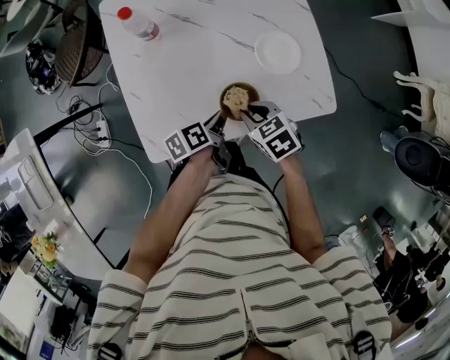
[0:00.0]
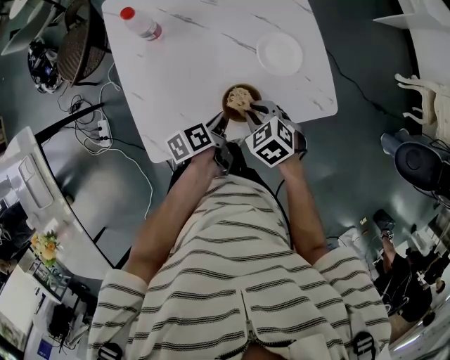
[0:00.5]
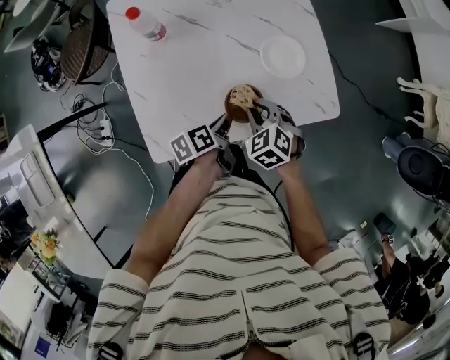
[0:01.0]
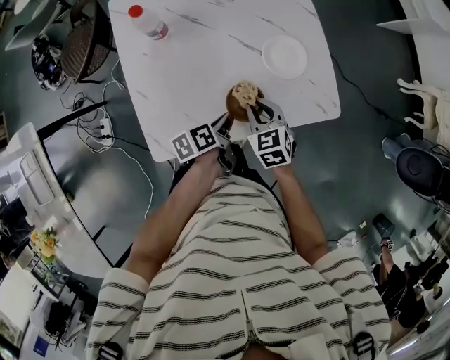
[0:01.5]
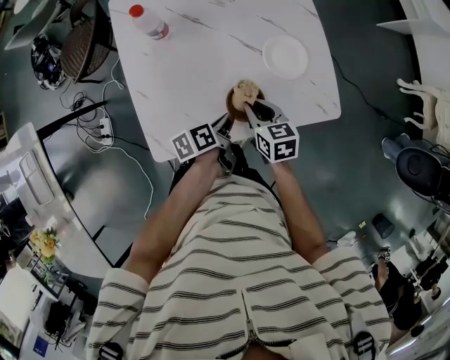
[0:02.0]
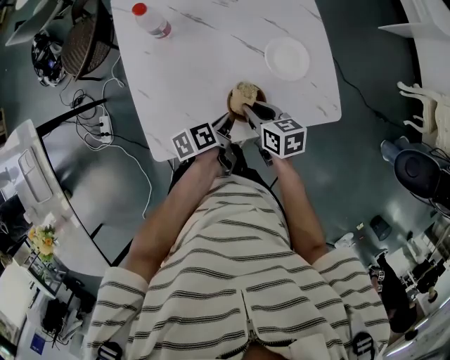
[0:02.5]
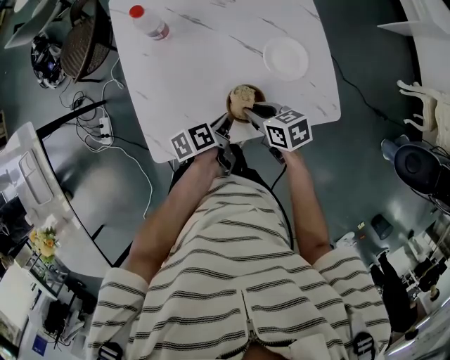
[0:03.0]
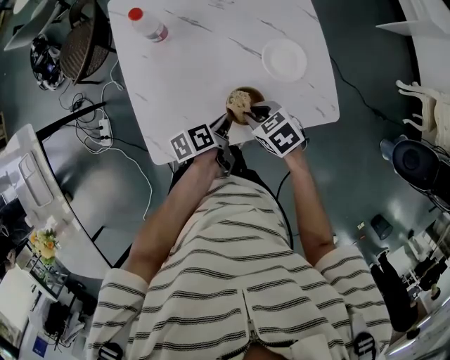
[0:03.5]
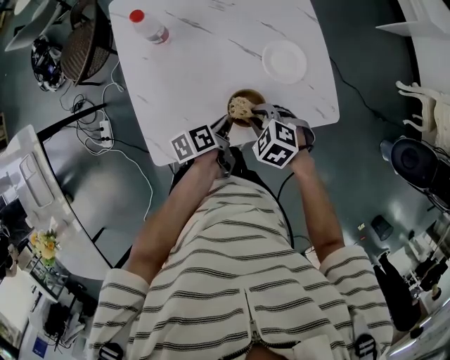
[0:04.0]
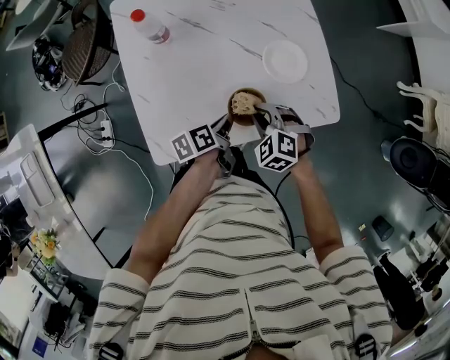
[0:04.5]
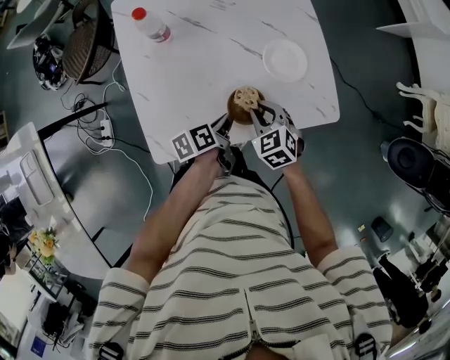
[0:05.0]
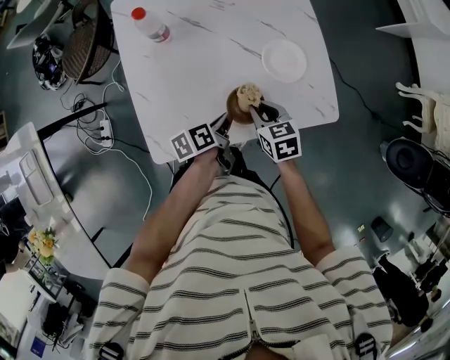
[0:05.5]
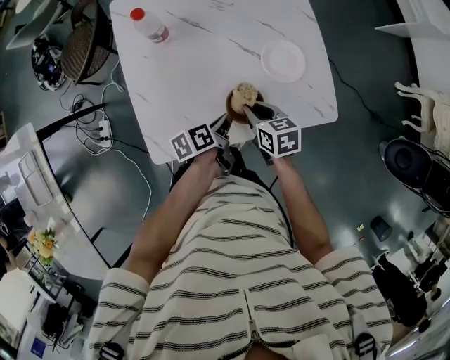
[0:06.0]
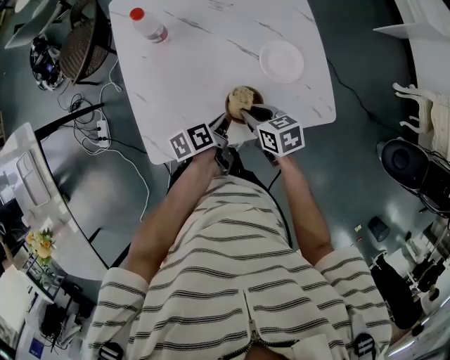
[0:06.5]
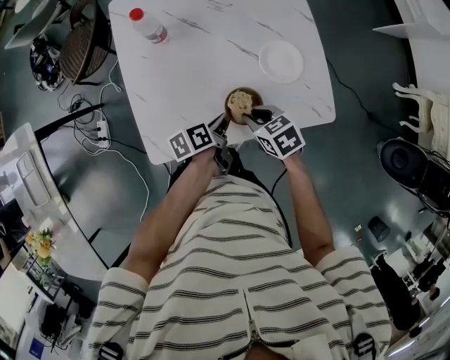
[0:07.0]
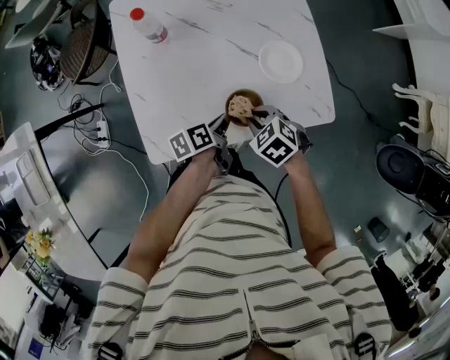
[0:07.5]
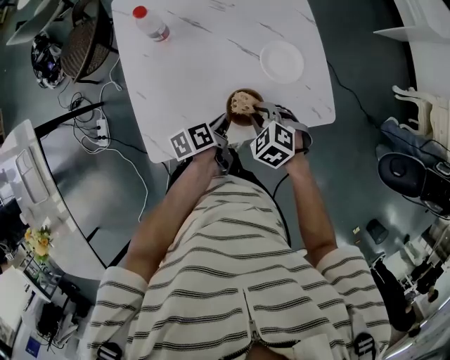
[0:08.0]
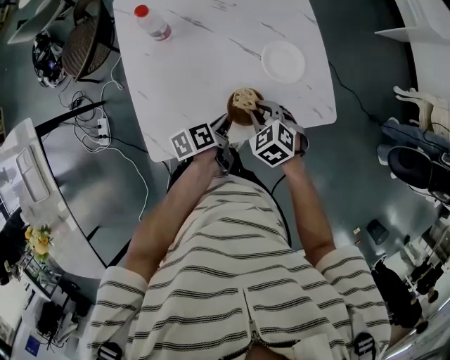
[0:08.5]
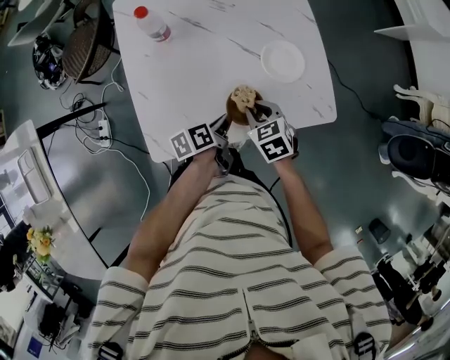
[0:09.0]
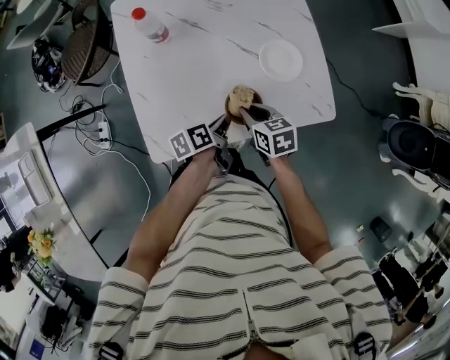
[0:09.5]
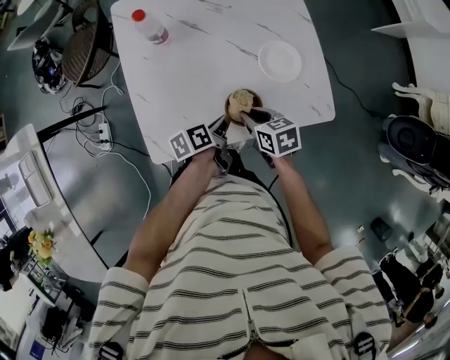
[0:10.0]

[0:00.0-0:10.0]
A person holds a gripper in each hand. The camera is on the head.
0:00.0 to 0:02.0: The right gripper swivels roughly 30 degrees.
0:02.0 to 0:04.0: The right gripper rolls counterclockwise, seen from behind, by roughly 50 degrees.
0:04.0 to 0:06.0: The right gripper rotates around the line of its fingers by some 50 degrees, clockwise from behind.
0:06.0 to 0:08.0: The right gripper rolls counterclockwise, seen from behind, by roughly 50 degrees.
0:08.0 to 0:10.0: The right gripper rolls clockwise, seen from behind, by some 50 degrees.

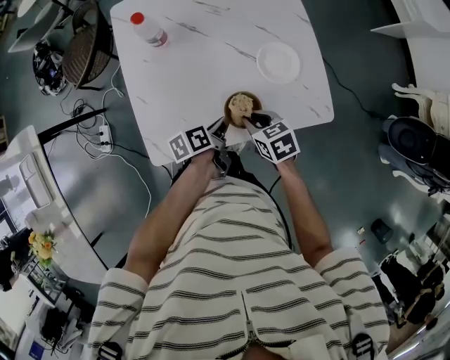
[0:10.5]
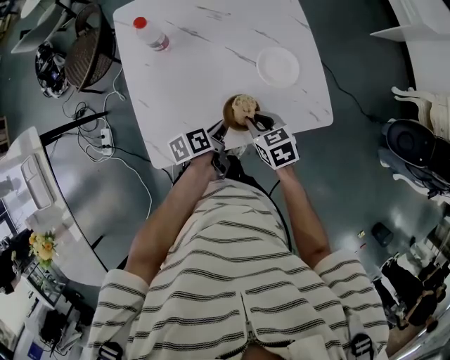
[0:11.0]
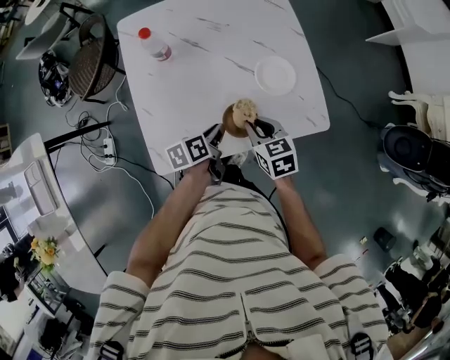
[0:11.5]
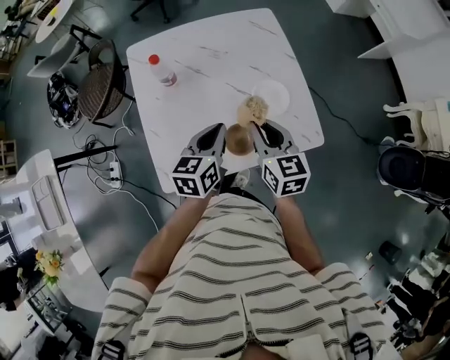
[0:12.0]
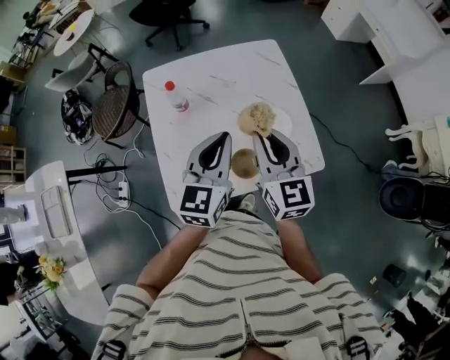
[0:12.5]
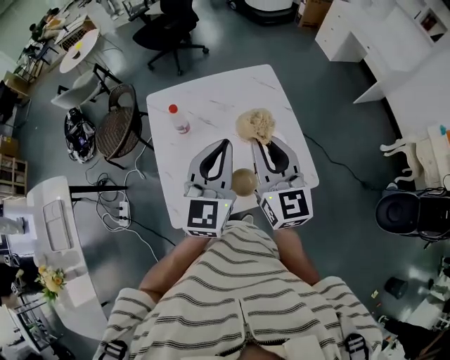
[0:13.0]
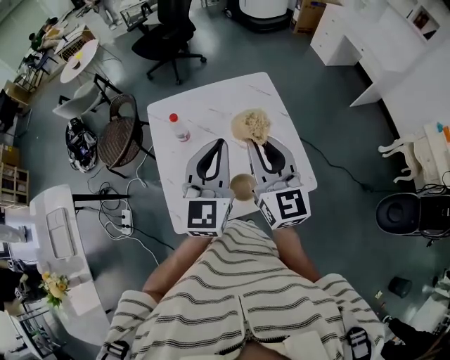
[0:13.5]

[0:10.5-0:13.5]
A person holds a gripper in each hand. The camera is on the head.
0:10.5 to 0:12.0: Both grippers move upward, about 20 cm. The left gripper rotates around the line of its fingers by approximately 50 degrees, clockwise from behind; the right gripper turns by about 40 degrees.
0:12.0 to 0:13.5: The two grippers go approximately 20 cm upward. The right gripper changes its angle by some 30 degrees. The left gripper changes its angle by roughly 40 degrees.

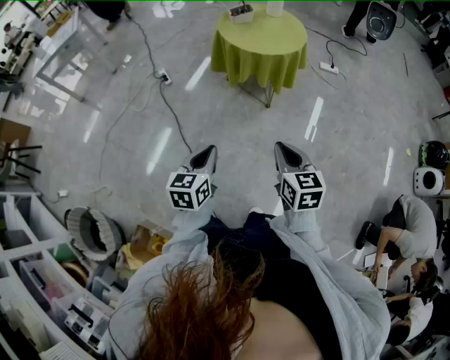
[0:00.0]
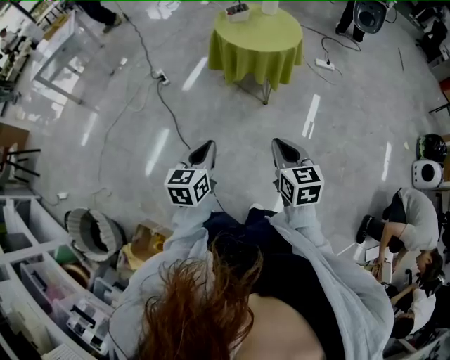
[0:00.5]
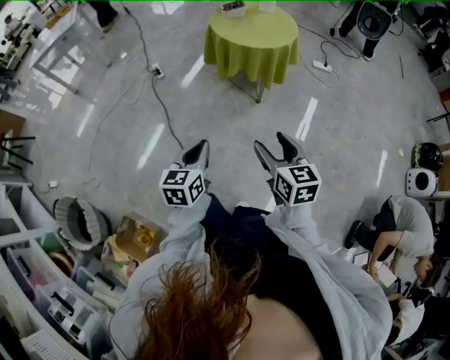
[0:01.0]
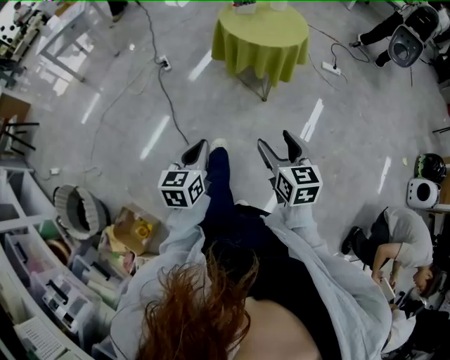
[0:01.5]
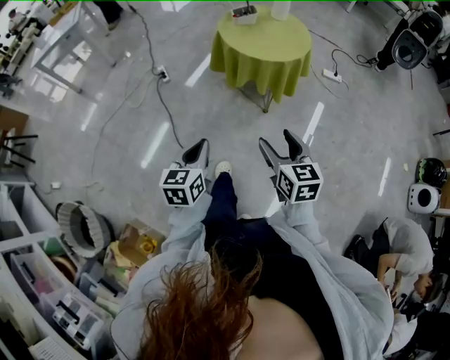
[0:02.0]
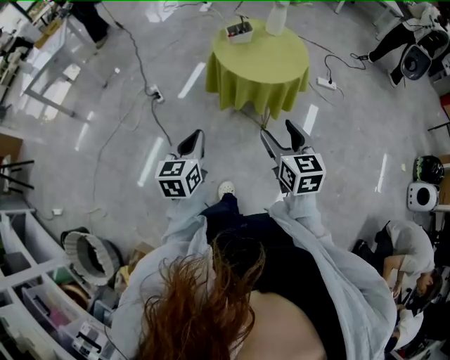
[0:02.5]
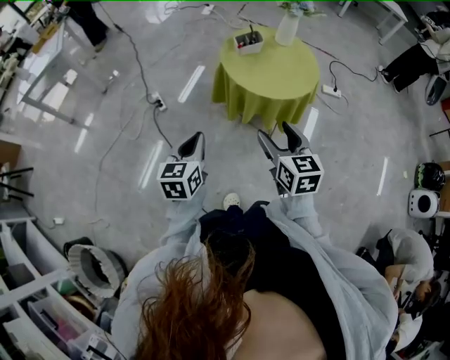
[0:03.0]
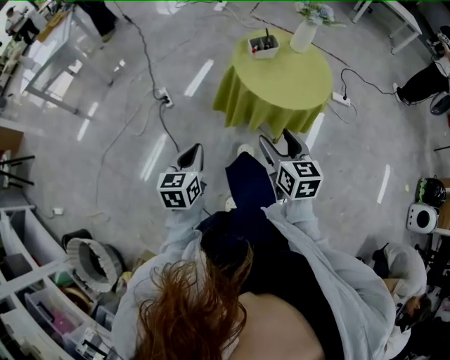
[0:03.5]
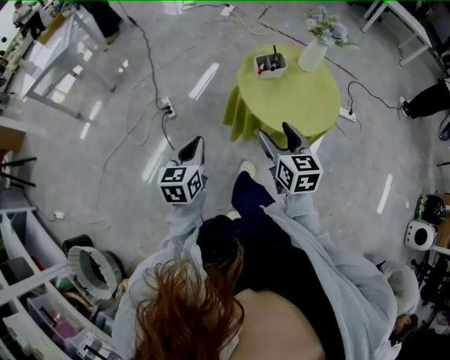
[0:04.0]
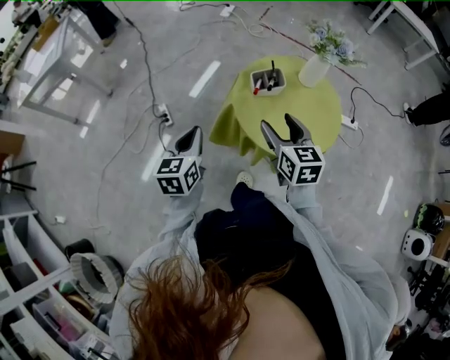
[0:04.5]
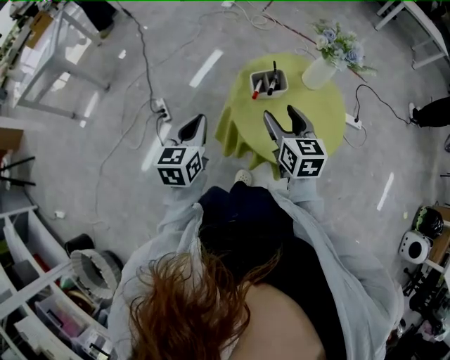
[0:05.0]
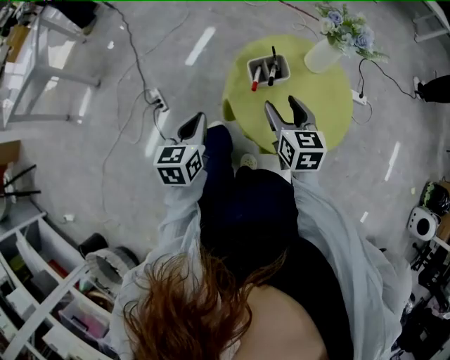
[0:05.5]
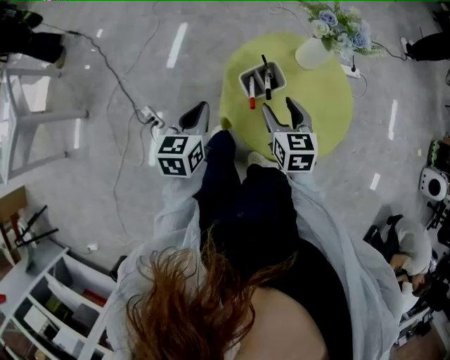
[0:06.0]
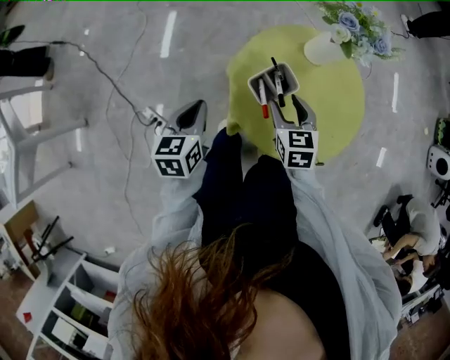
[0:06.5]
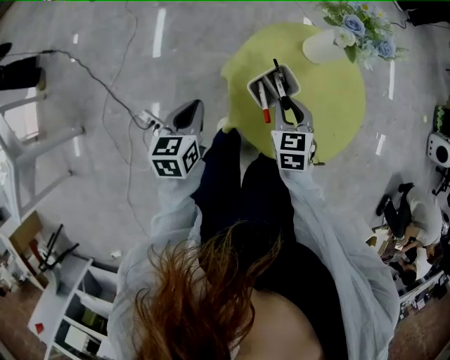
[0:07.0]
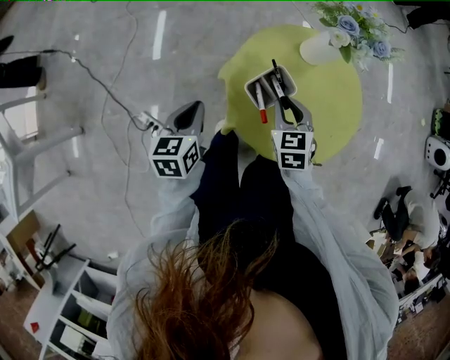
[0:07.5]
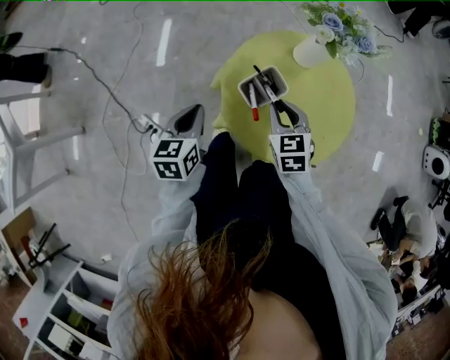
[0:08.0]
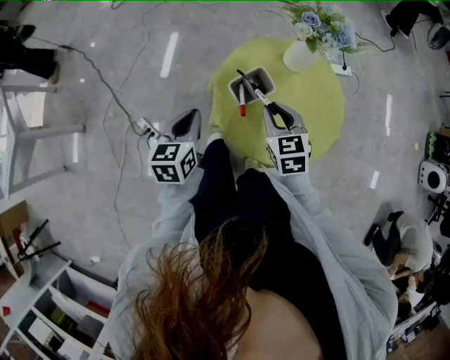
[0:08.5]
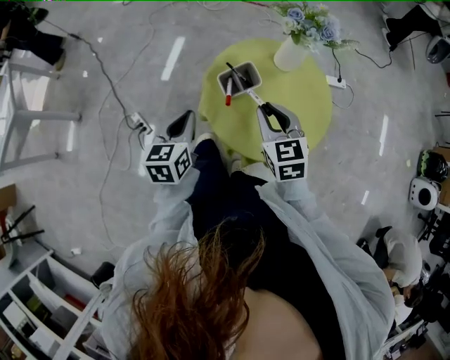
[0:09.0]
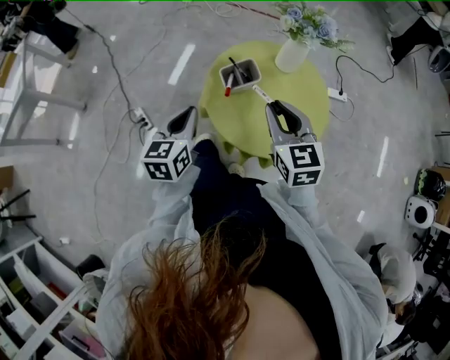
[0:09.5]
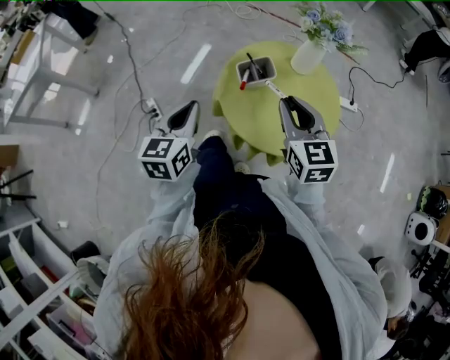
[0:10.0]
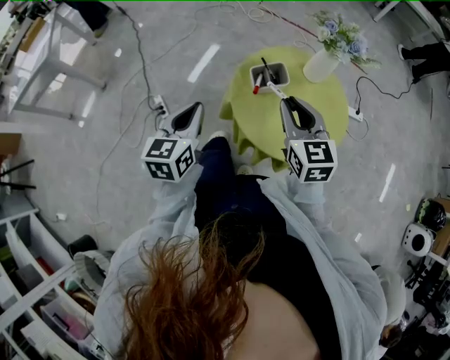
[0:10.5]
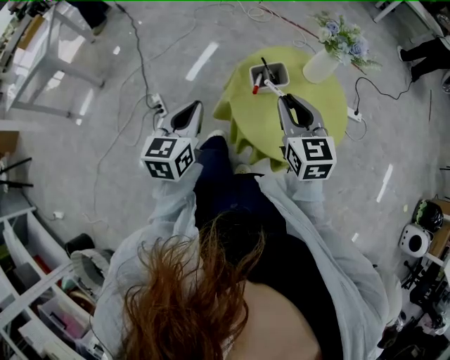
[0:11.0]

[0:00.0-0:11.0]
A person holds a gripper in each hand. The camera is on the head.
0:00.0 to 0:02.0: Both grippers travel together forward, roughly 5 cm. The right gripper opens up.
0:02.0 to 0:03.5: The left gripper heads forward and to the left, covering approximately 25 cm. The right gripper is displaced forward by roughly 25 cm.
0:03.5 to 0:05.5: The two grippers go roughly 30 cm forward.
0:05.5 to 0:07.5: The right gripper shifts about 10 cm downward, swivels approximately 30 degrees, and closes, while the left gripper changes place by about 20 cm, and rotates some 20 degrees.
0:07.5 to 0:09.0: The right gripper travels upward and backward by approximately 10 cm, and changes its angle by about 20 degrees; the left gripper goes some 10 cm backward and to the right.
0:09.0 to 0:11.0: The right gripper moves upward, roughly 5 cm, while the left gripper shifts roughly 10 cm backward and upward.

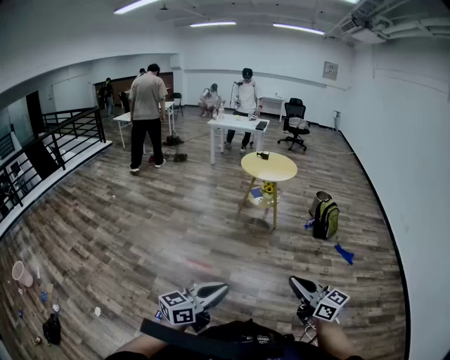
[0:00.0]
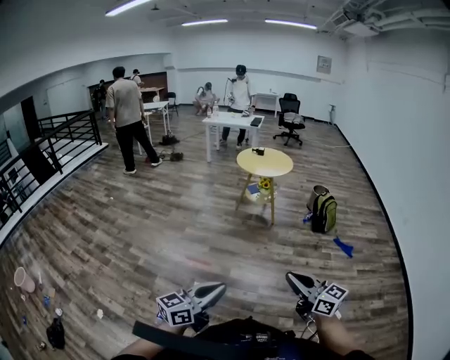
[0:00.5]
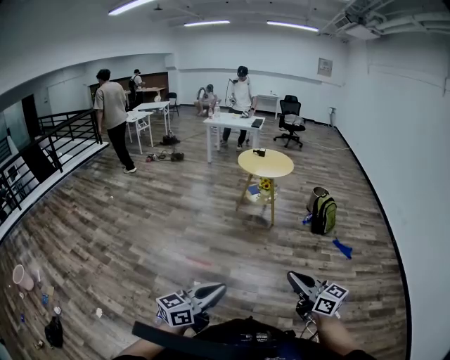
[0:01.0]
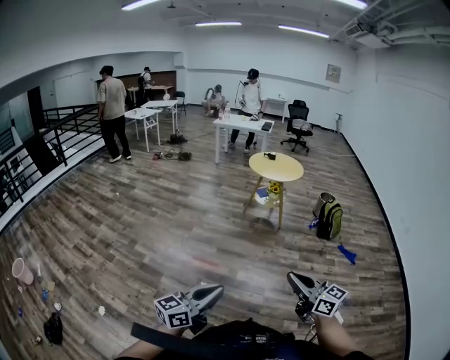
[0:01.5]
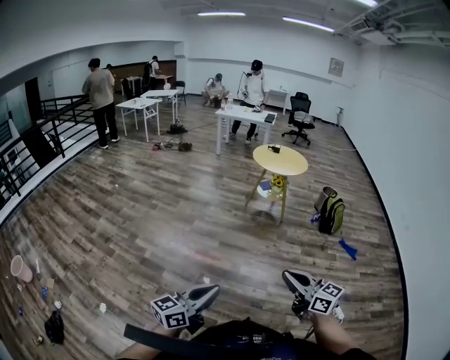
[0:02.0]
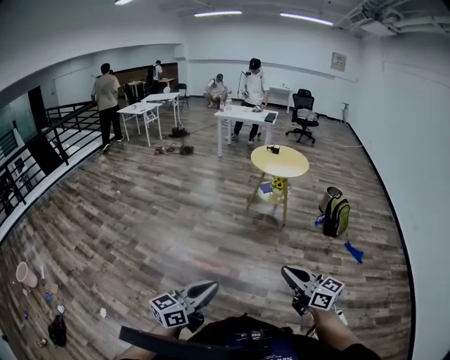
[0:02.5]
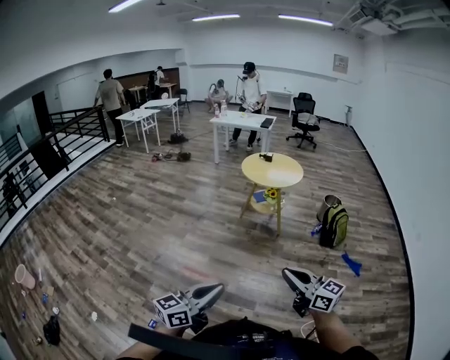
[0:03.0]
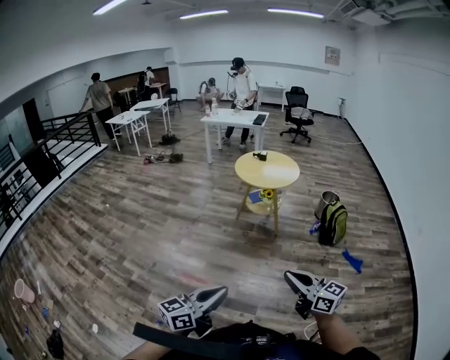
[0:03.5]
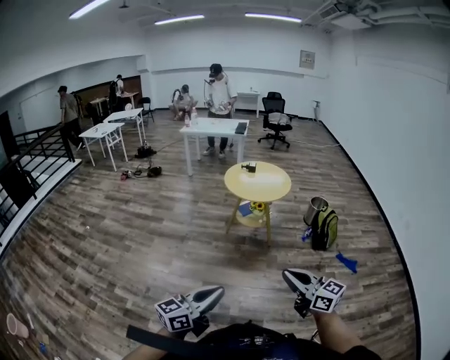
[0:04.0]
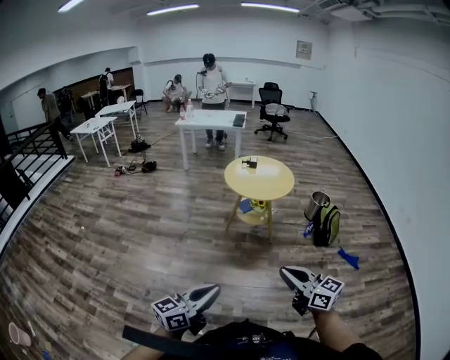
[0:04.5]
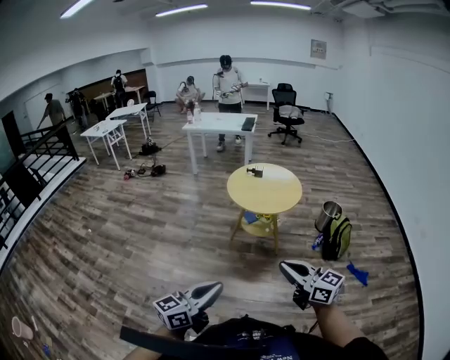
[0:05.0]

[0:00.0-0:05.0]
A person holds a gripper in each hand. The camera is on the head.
0:00.0 to 0:02.5: The right gripper heads forward and to the left, covering about 15 cm. Meanwhile the left gripper is displaced to the left and forward by approximately 15 cm.
0:02.5 to 0:05.0: Both grippers are carried forward, about 60 cm.
